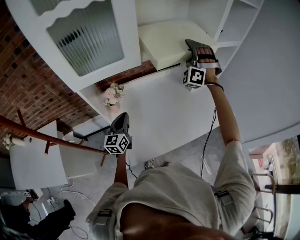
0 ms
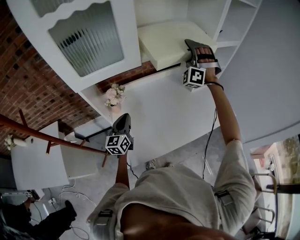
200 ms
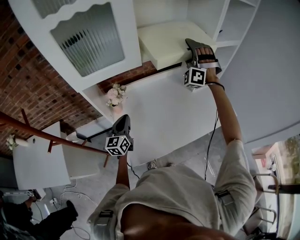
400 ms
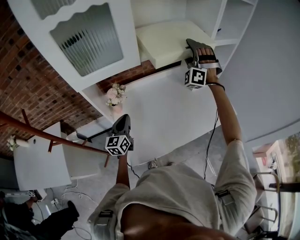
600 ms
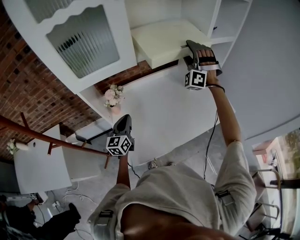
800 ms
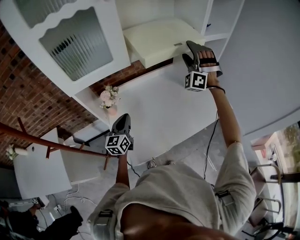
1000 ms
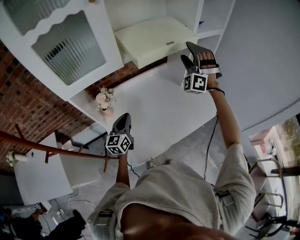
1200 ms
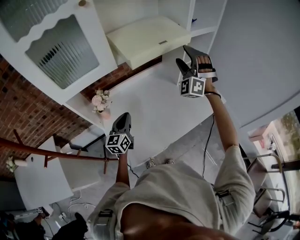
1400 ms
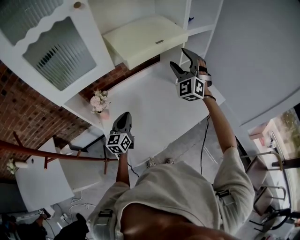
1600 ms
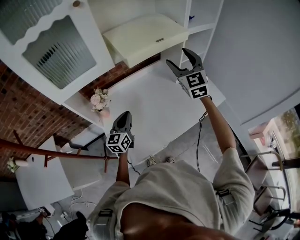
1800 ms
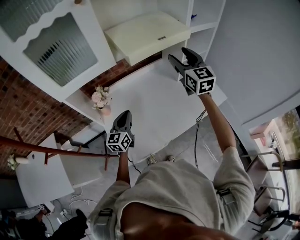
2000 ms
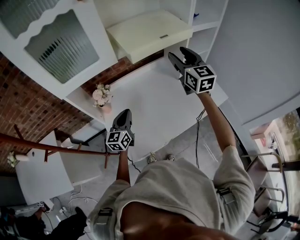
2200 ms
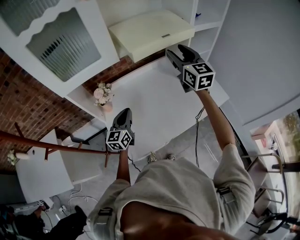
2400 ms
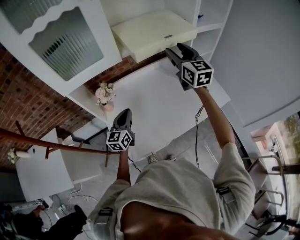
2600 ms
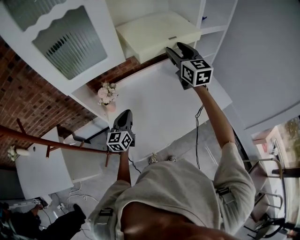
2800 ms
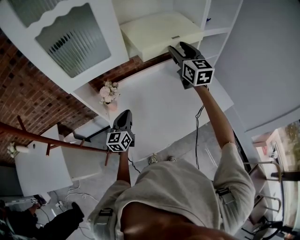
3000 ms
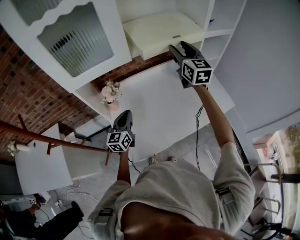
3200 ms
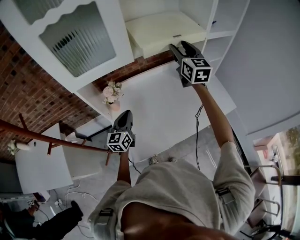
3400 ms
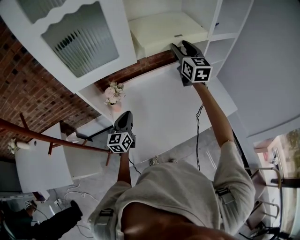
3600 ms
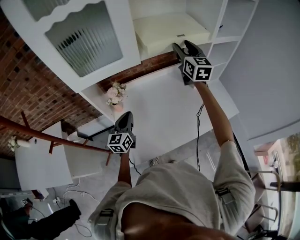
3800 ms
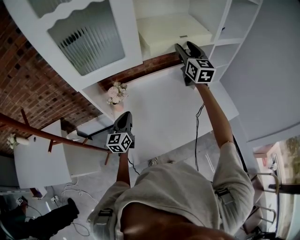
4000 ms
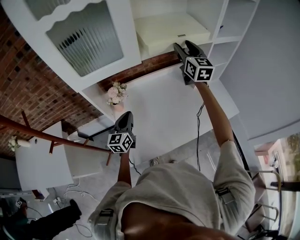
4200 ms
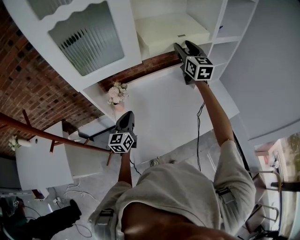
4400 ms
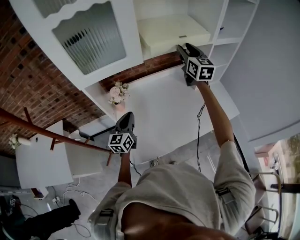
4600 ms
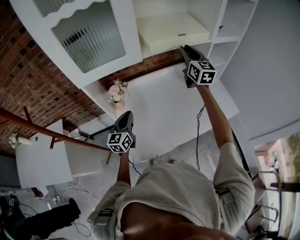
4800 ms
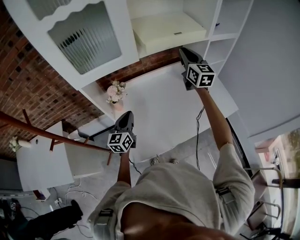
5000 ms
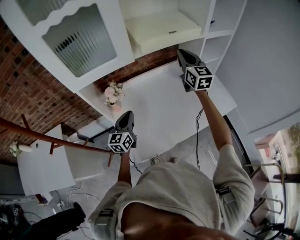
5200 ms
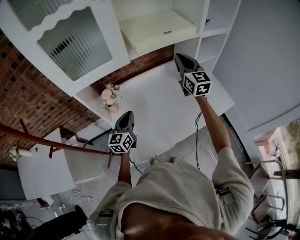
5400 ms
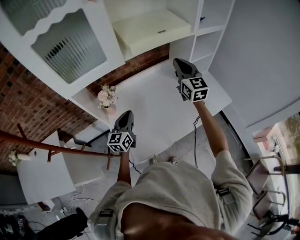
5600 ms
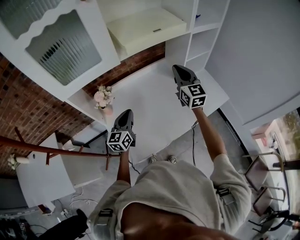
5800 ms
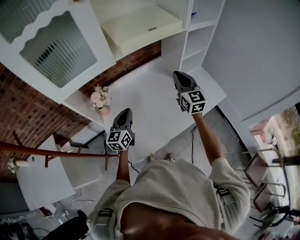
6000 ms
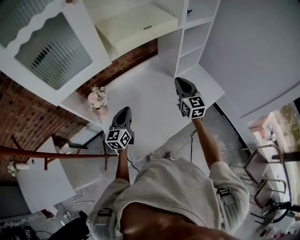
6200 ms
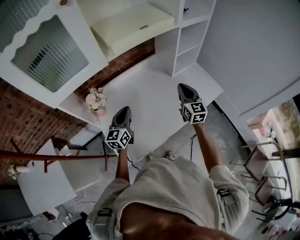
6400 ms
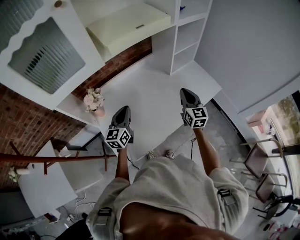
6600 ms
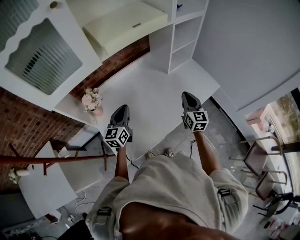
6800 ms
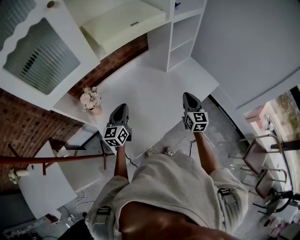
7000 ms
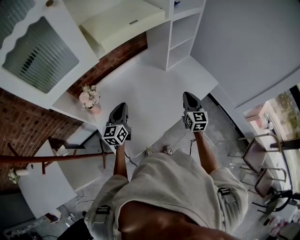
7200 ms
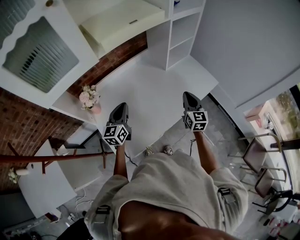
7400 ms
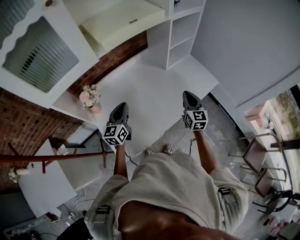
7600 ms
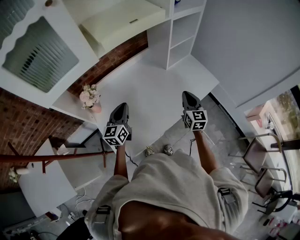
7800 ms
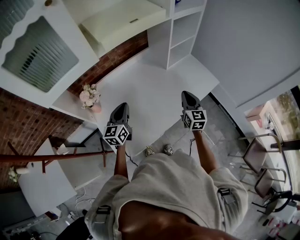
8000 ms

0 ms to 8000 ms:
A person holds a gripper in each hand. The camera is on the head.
0 ms to 1600 ms: The left gripper heads to the right, covering about 10 cm; the right gripper moves backward and to the right, some 10 cm, and changes its angle by about 30 degrees.
1600 ms to 3200 ms: The grippers both shift to the left by about 5 cm. The right gripper twists roughly 60 degrees clockwise, seen from behind.
3200 ms to 4800 ms: The right gripper closes its fingers.
4800 ms to 6400 ms: The left gripper moves to the right, about 10 cm, while the right gripper goes about 25 cm downward, backward and to the right.
6400 ms to 8000 ms: The right gripper travels downward, to the right and backward by roughly 10 cm.

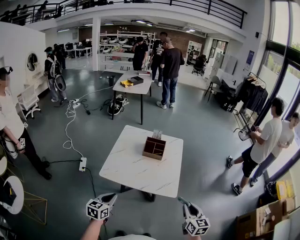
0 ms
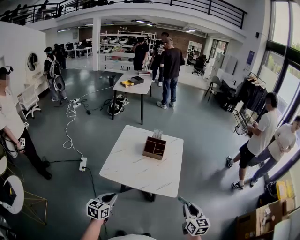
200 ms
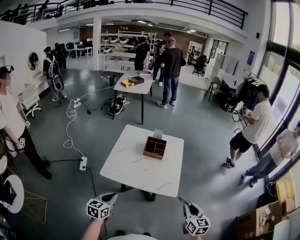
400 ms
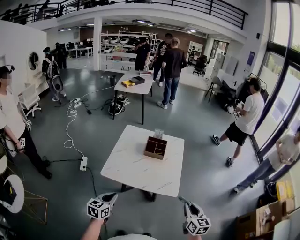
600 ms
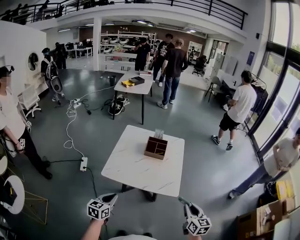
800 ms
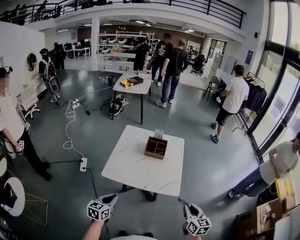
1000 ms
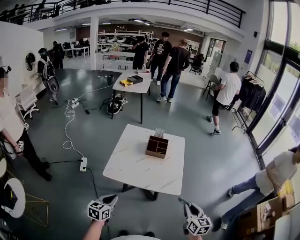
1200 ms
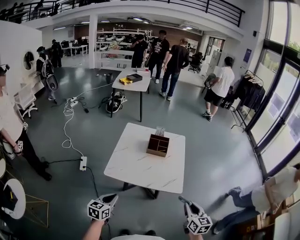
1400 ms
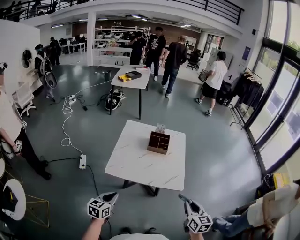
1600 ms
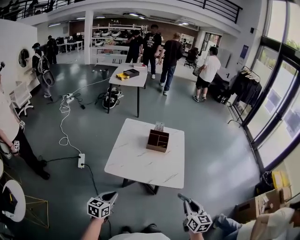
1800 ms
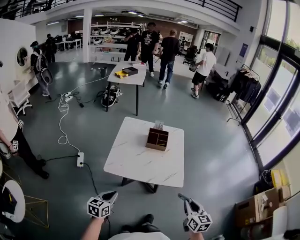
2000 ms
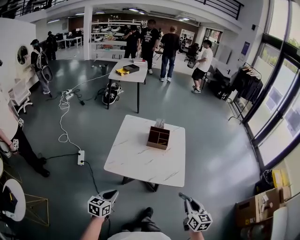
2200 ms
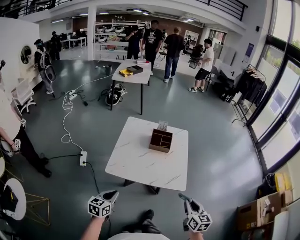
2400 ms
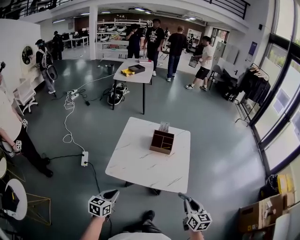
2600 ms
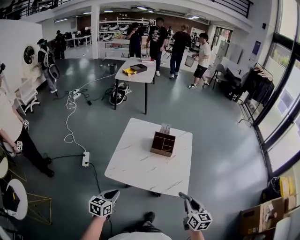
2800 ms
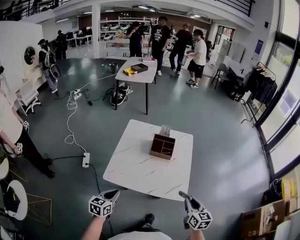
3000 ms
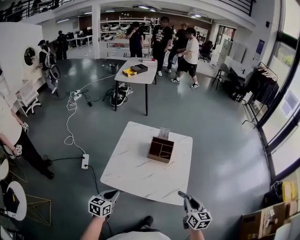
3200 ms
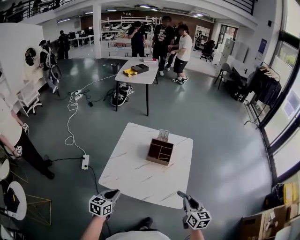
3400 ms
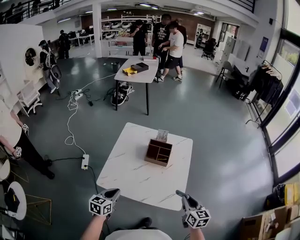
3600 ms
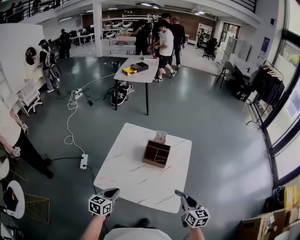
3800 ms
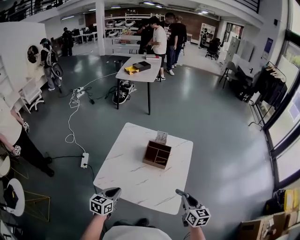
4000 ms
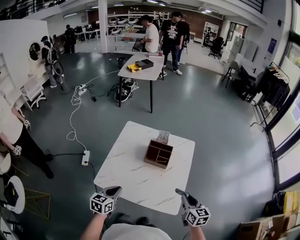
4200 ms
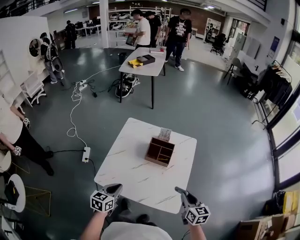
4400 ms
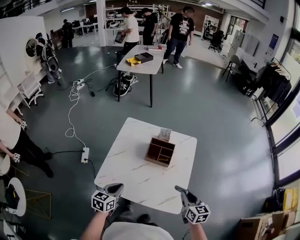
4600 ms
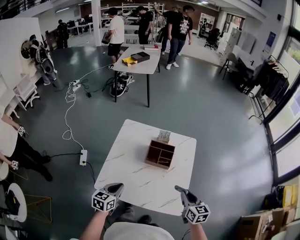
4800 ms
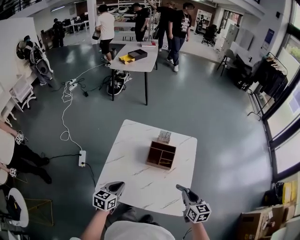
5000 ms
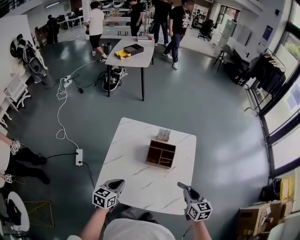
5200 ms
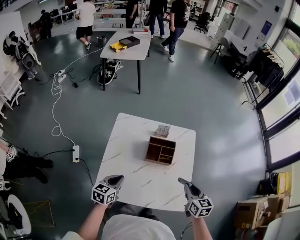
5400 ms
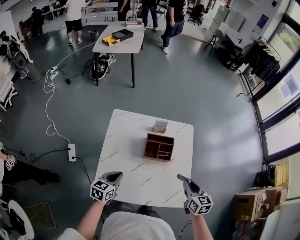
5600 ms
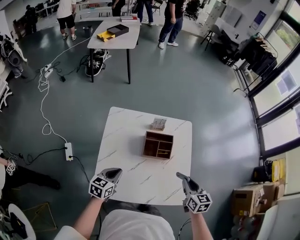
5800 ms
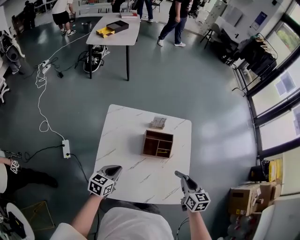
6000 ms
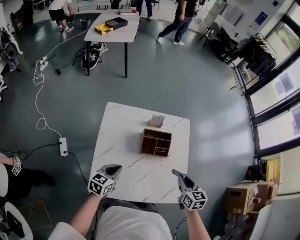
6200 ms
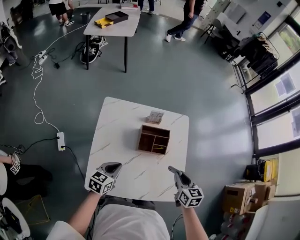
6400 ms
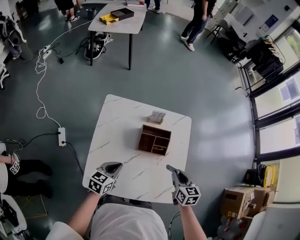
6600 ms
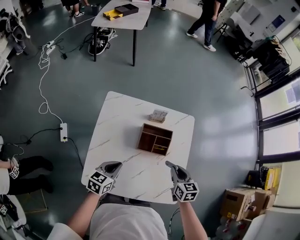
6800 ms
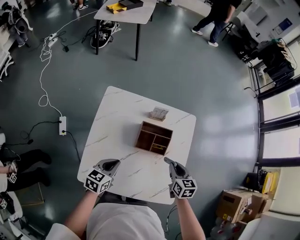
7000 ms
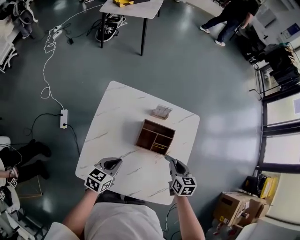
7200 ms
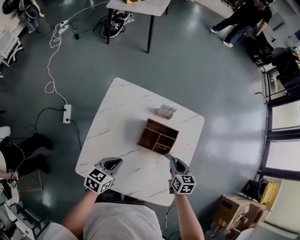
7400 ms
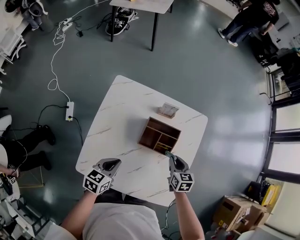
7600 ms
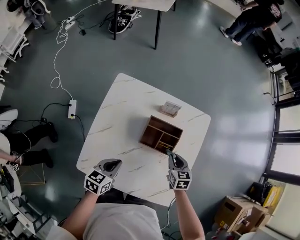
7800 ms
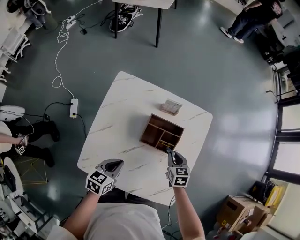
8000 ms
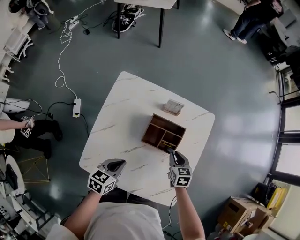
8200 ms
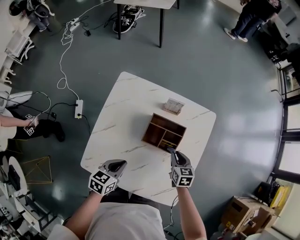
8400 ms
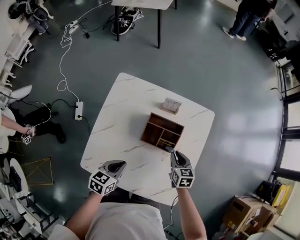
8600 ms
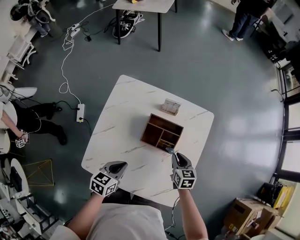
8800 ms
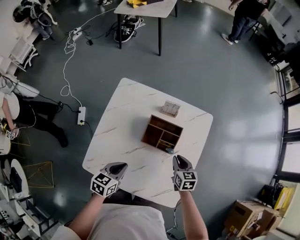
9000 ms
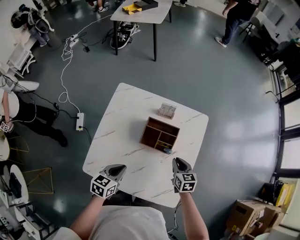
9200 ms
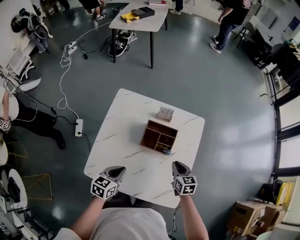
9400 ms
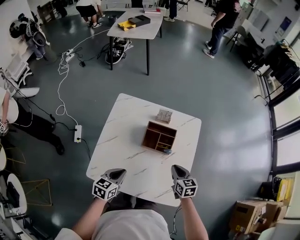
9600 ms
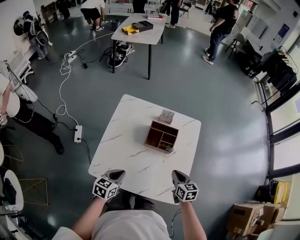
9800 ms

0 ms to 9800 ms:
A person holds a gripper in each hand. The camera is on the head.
0 ms to 1400 ms: The two grippers go some 5 cm to the left.
1400 ms to 2800 ms: Both grippers move forward, some 10 cm.
2800 ms to 4200 ms: The right gripper shifts about 20 cm forward; the left gripper is displaced forward and to the right by roughly 20 cm.
4200 ms to 5600 ms: Both grippers travel together forward and to the left, roughly 15 cm.
5600 ms to 7000 ms: The right gripper travels forward and downward by roughly 15 cm; the left gripper is displaced forward by roughly 5 cm.
7000 ms to 8400 ms: The left gripper moves roughly 5 cm. Meanwhile the right gripper moves downward, roughly 10 cm.
8400 ms to 9800 ms: The left gripper is displaced backward and upward by some 10 cm. The right gripper goes about 20 cm backward and upward.

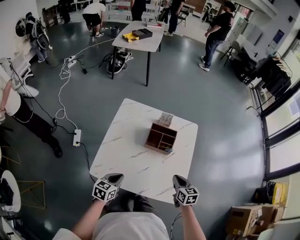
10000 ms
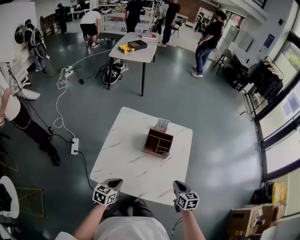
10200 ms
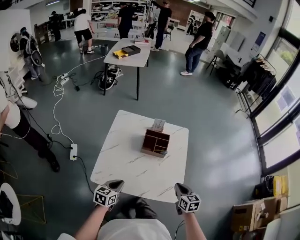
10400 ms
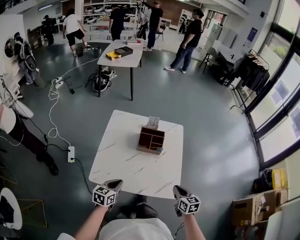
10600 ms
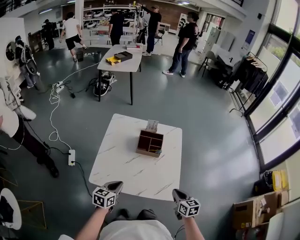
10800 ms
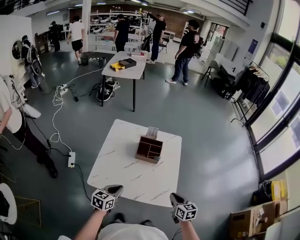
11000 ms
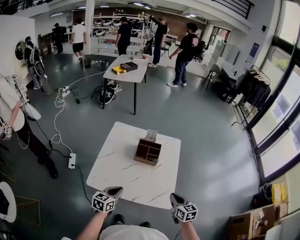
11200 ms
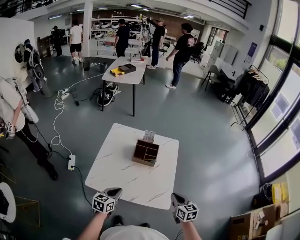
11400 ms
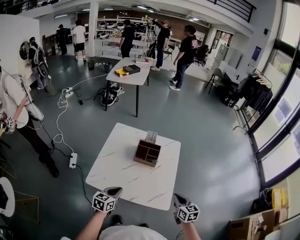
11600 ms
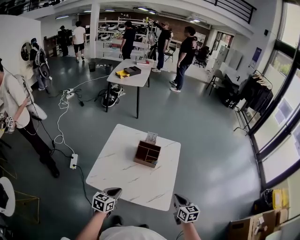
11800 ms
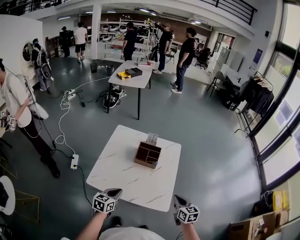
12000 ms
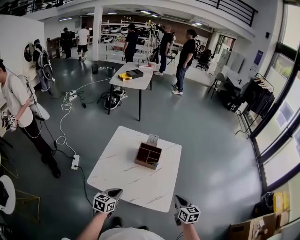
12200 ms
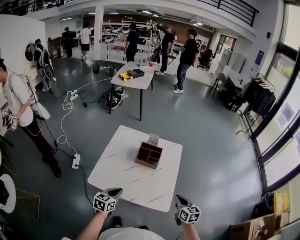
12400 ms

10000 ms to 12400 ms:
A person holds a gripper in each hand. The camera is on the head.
10000 ms to 11200 ms: Both grippers travel together backward, upward and to the right, about 15 cm.
11200 ms to 12400 ms: The right gripper moves to the right, approximately 5 cm.

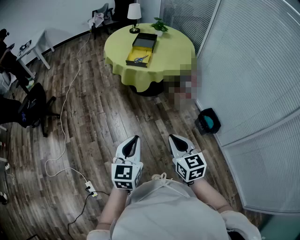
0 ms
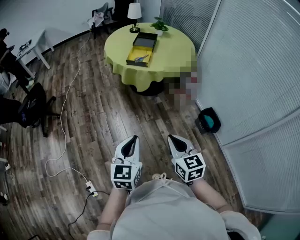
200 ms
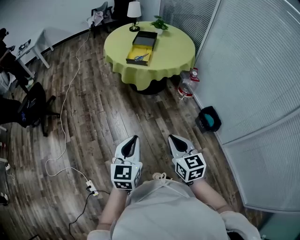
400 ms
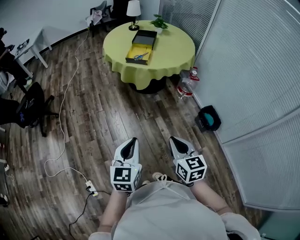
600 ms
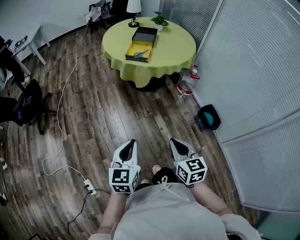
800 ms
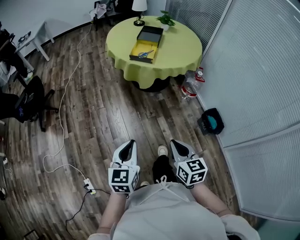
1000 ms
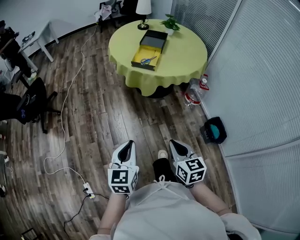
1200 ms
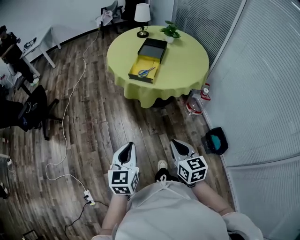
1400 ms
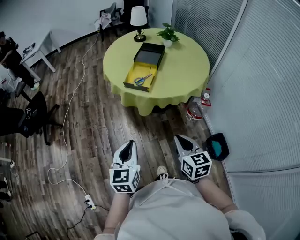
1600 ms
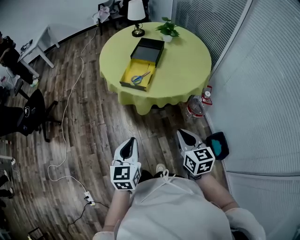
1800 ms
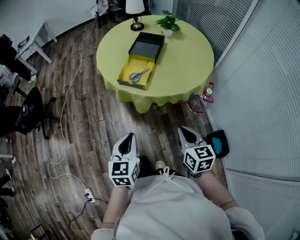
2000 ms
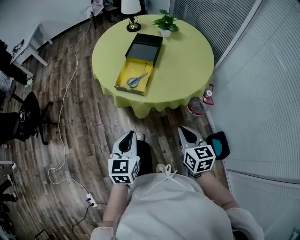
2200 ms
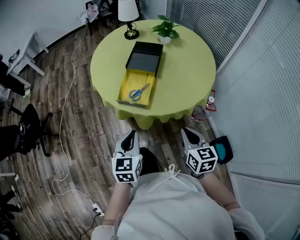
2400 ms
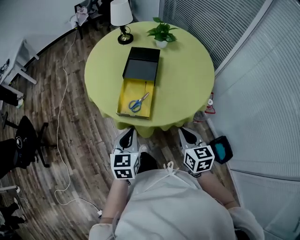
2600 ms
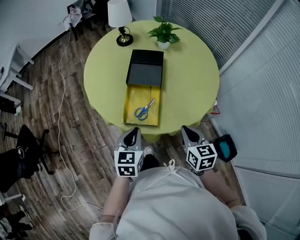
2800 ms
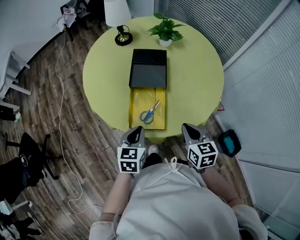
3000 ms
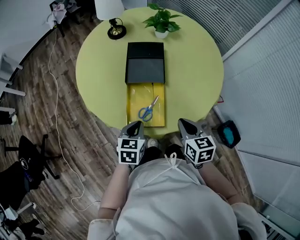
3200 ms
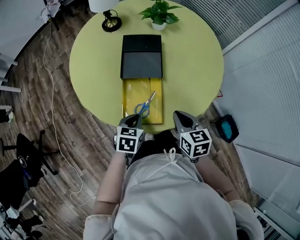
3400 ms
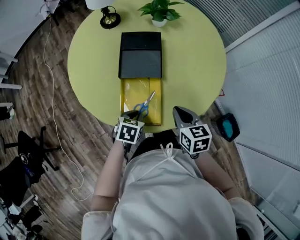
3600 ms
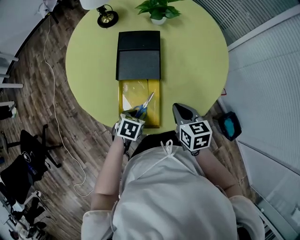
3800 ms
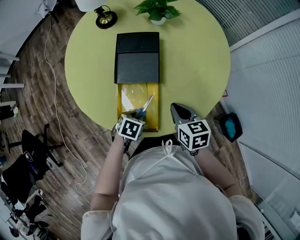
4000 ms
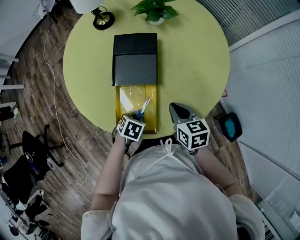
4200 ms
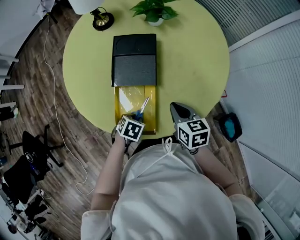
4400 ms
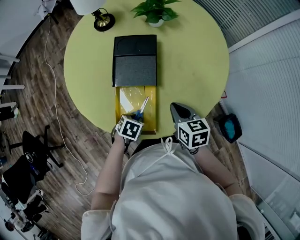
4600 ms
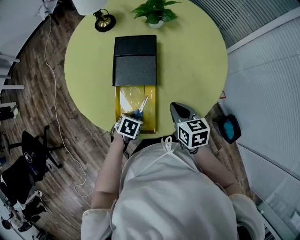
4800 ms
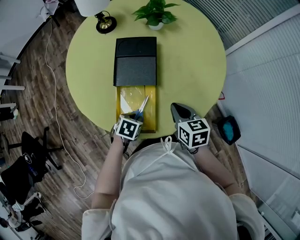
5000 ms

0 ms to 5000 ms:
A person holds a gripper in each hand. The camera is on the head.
0 ms to 1600 ms: Both grippers move forward, roughly 30 cm.
1600 ms to 3400 ms: The pair of grippers is taken some 50 cm. The right gripper swivels roughly 20 degrees; the left gripper points its fingers about 30 degrees further downward.
3400 ms to 5000 ms: The left gripper goes approximately 5 cm downward, and changes its angle by roughly 20 degrees. Meanwhile the right gripper changes place by roughly 10 cm.
